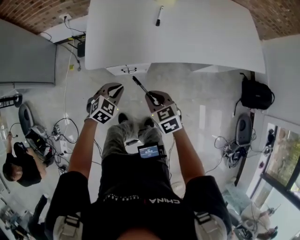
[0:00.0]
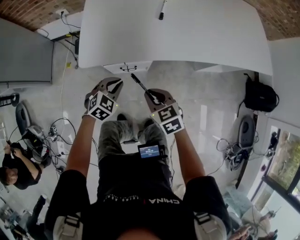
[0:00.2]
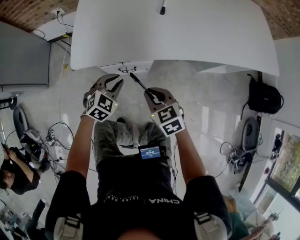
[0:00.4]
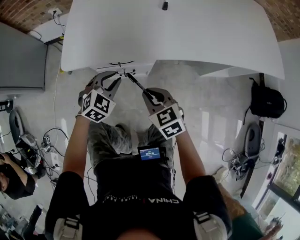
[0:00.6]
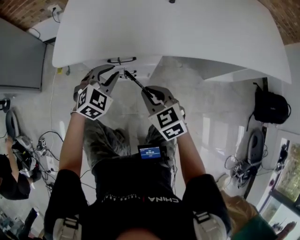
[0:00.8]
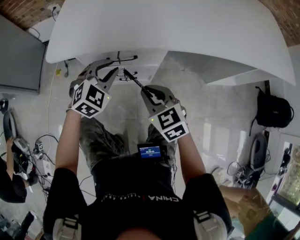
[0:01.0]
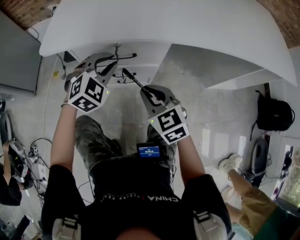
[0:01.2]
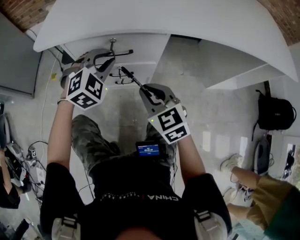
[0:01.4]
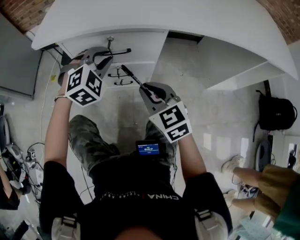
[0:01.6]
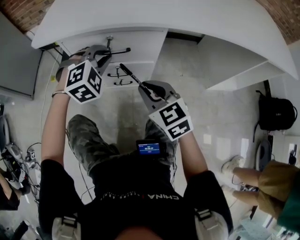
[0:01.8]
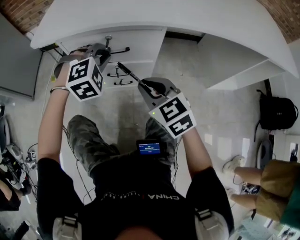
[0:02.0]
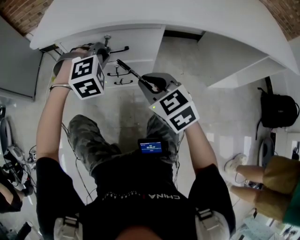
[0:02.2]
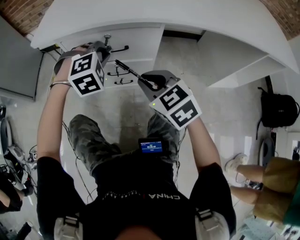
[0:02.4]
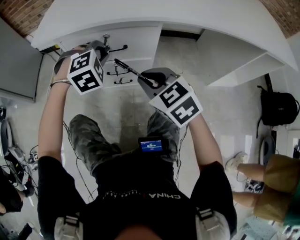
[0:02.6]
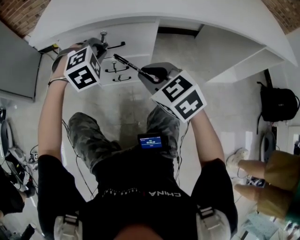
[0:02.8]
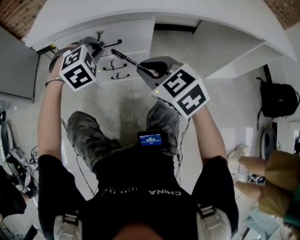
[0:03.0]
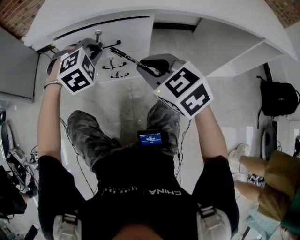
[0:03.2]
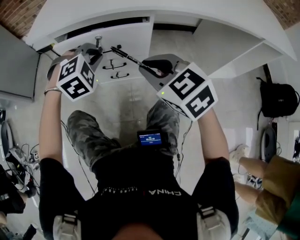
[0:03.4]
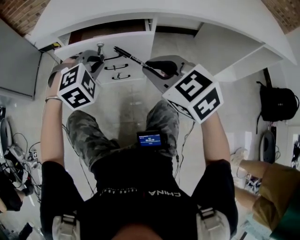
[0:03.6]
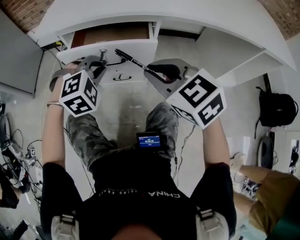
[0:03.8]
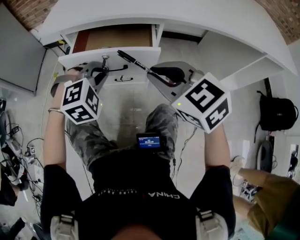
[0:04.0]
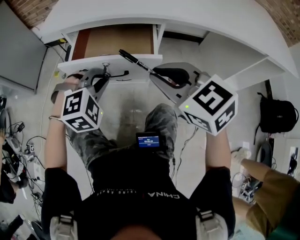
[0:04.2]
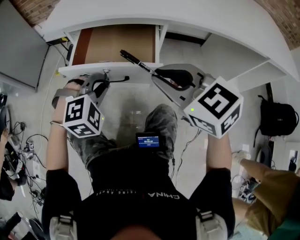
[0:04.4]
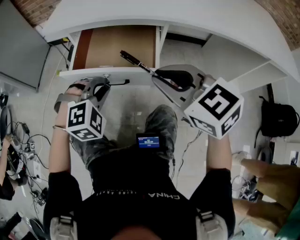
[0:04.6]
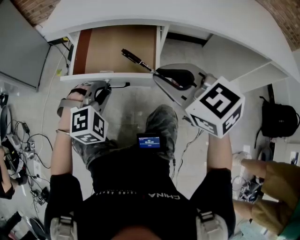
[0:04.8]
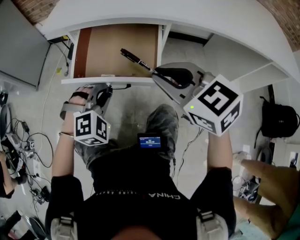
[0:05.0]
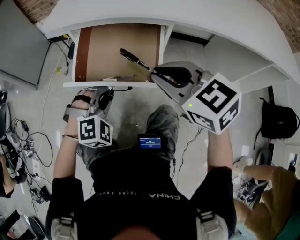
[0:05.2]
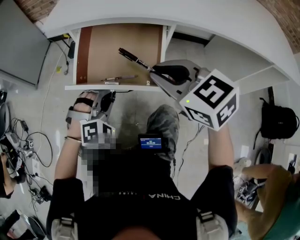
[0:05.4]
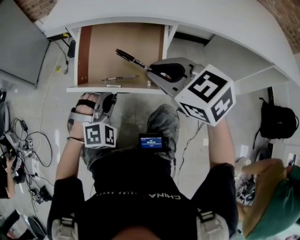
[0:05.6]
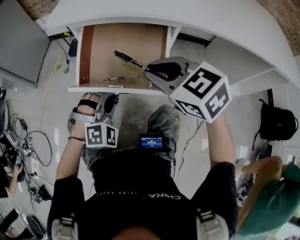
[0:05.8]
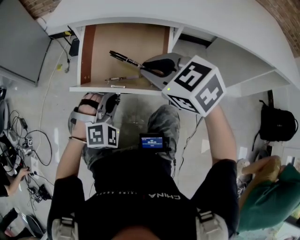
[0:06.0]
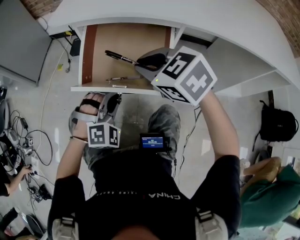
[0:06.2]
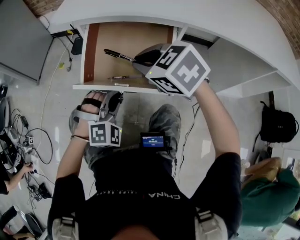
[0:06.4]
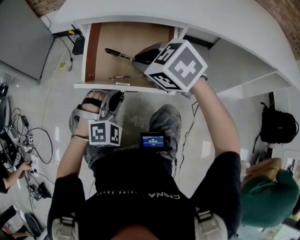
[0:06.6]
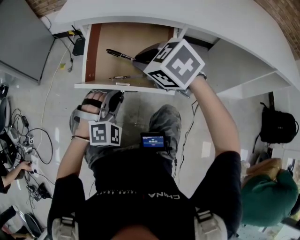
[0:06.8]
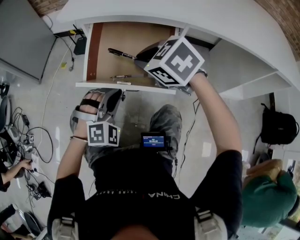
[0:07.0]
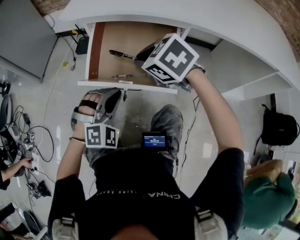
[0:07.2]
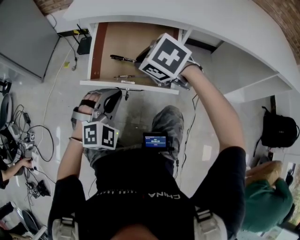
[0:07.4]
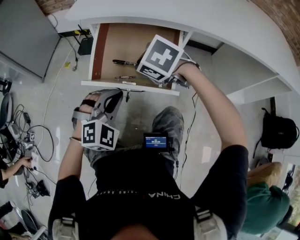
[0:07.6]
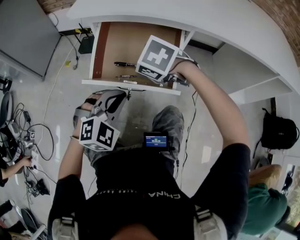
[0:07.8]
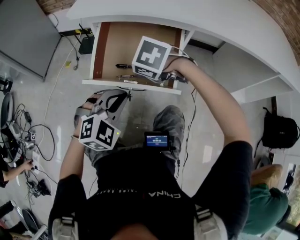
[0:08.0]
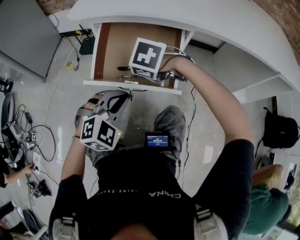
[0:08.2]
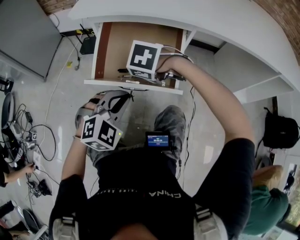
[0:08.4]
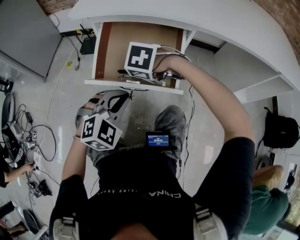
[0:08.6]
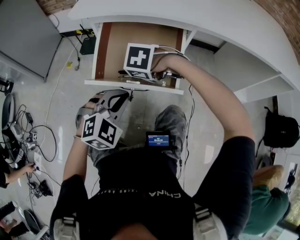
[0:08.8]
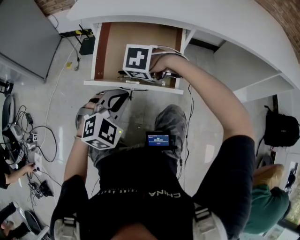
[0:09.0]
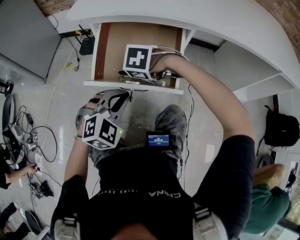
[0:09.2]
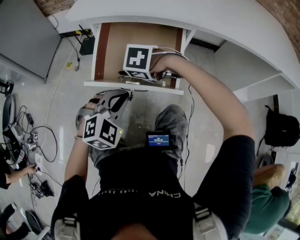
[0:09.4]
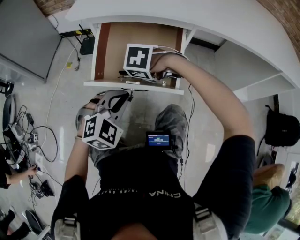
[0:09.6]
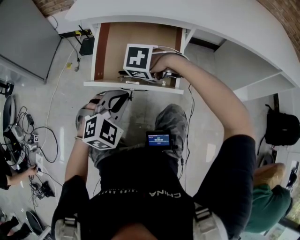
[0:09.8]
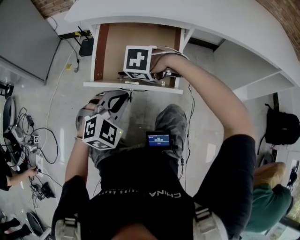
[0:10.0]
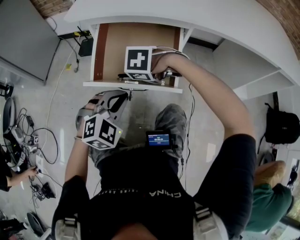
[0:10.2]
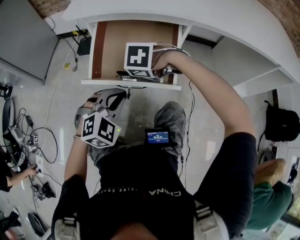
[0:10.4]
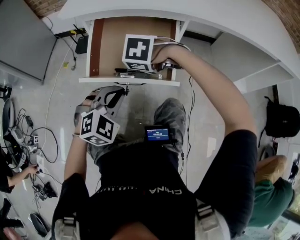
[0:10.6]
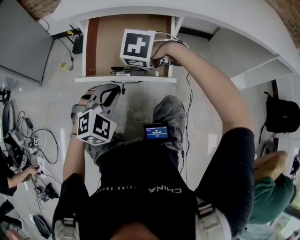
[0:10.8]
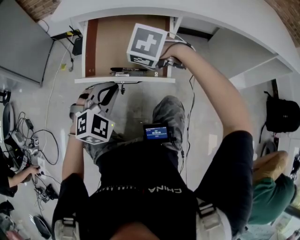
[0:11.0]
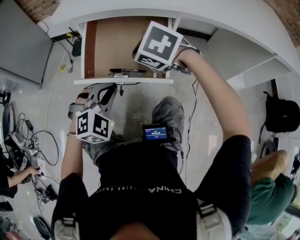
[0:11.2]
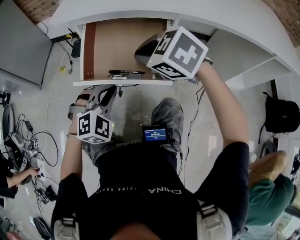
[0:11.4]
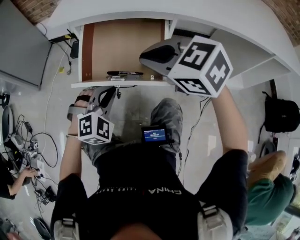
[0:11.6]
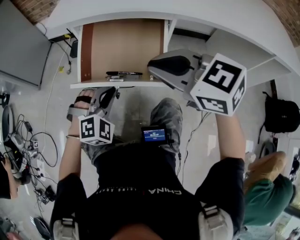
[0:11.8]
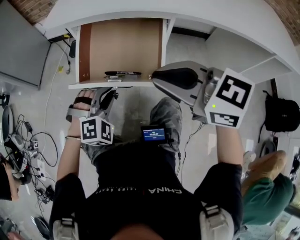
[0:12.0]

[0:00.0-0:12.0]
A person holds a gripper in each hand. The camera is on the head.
0:00.0 to 0:01.6: The right gripper shifts approximately 25 cm downward, and changes its angle by about 20 degrees; the left gripper shifts about 25 cm downward and forward, and changes its angle by roughly 30 degrees.
0:01.6 to 0:03.0: The right gripper is displaced upward by roughly 5 cm.
0:03.0 to 0:04.4: The left gripper moves backward, about 15 cm. Meanwhile the right gripper moves upward and backward, approximately 10 cm.
0:04.4 to 0:06.0: The left gripper travels downward by roughly 5 cm, while the right gripper heads forward, covering roughly 5 cm.
0:06.0 to 0:07.6: The right gripper moves downward and forward, roughly 10 cm, and rotates approximately 20 degrees.
0:07.6 to 0:09.0: The right gripper is displaced downward by some 10 cm, and swivels approximately 20 degrees.
0:09.0 to 0:10.4: Both grippers stay about where they are.
0:10.4 to 0:12.0: The right gripper travels upward by approximately 20 cm, and angles its fingers upward, by roughly 60 degrees. The left gripper changes its angle by approximately 20 degrees.

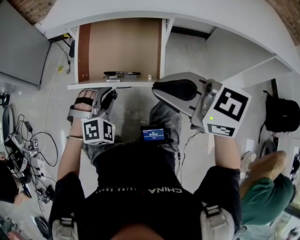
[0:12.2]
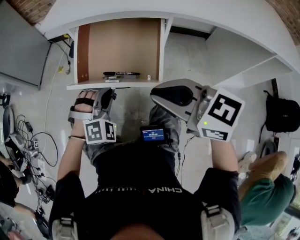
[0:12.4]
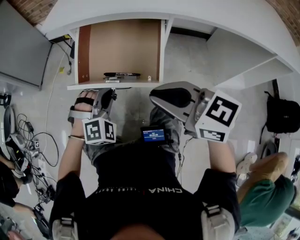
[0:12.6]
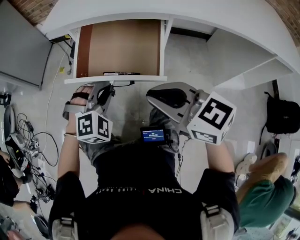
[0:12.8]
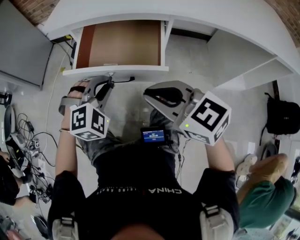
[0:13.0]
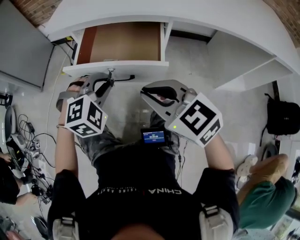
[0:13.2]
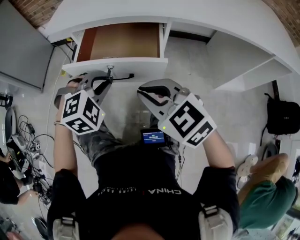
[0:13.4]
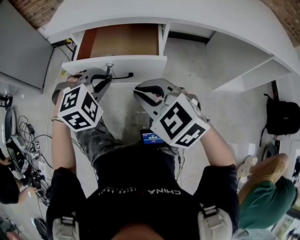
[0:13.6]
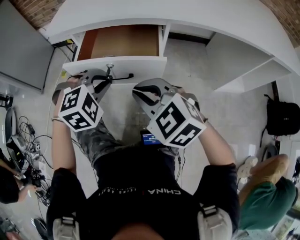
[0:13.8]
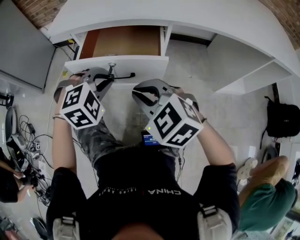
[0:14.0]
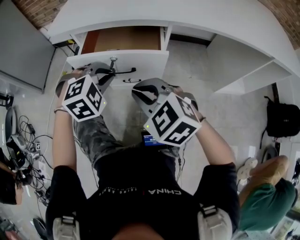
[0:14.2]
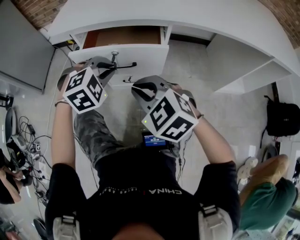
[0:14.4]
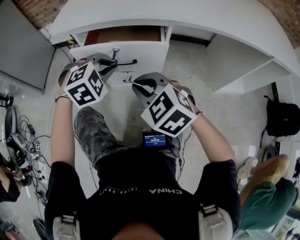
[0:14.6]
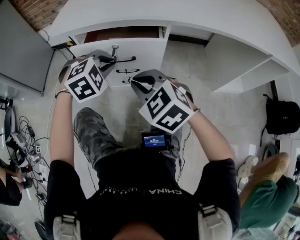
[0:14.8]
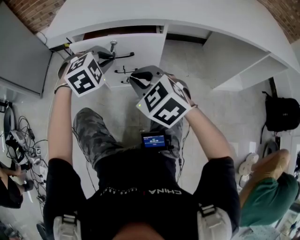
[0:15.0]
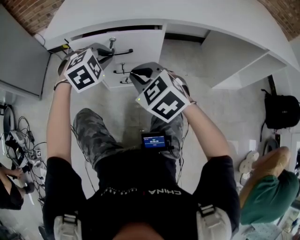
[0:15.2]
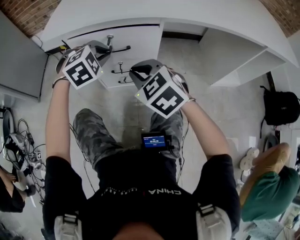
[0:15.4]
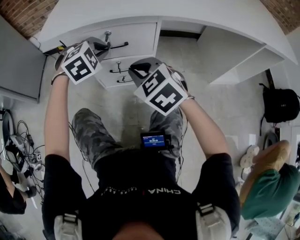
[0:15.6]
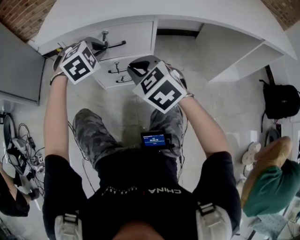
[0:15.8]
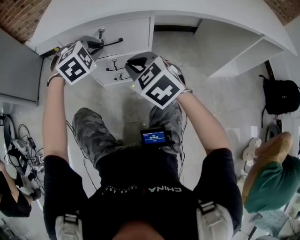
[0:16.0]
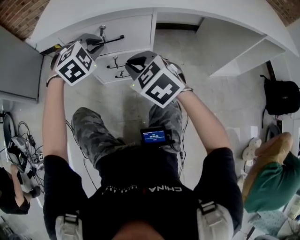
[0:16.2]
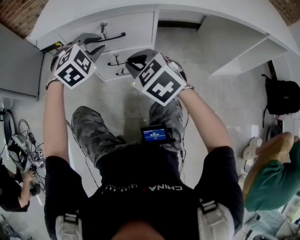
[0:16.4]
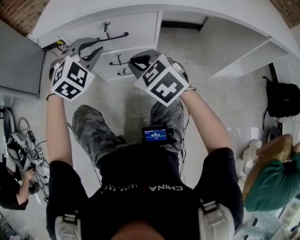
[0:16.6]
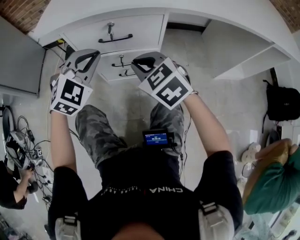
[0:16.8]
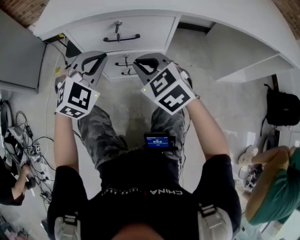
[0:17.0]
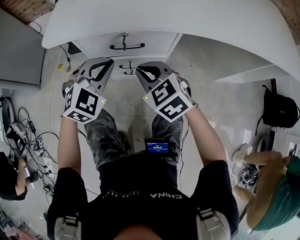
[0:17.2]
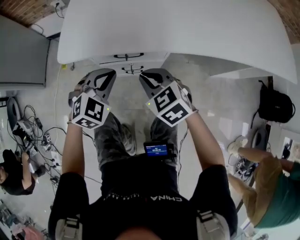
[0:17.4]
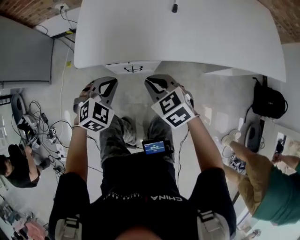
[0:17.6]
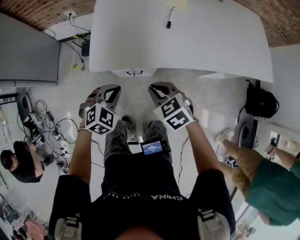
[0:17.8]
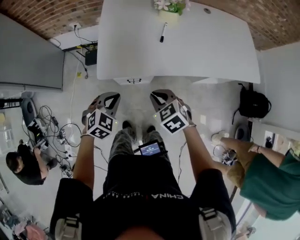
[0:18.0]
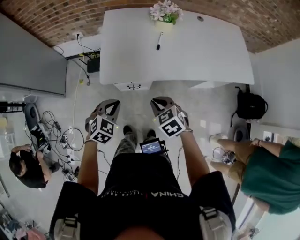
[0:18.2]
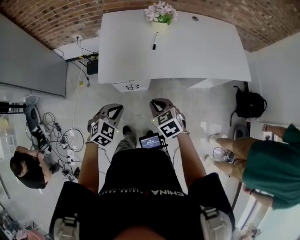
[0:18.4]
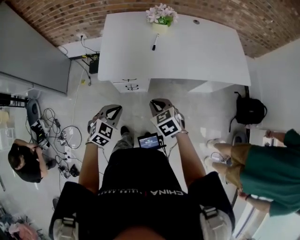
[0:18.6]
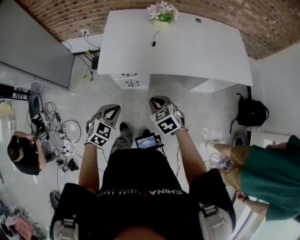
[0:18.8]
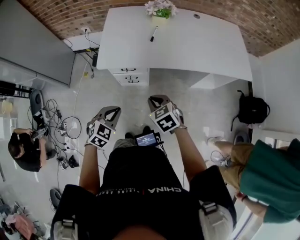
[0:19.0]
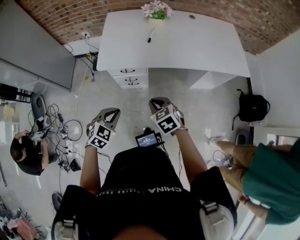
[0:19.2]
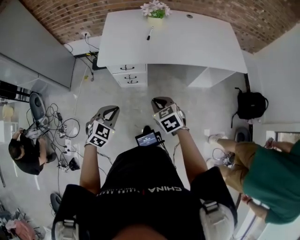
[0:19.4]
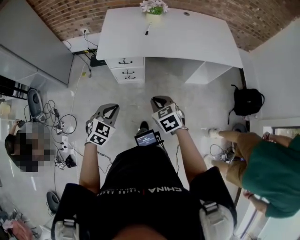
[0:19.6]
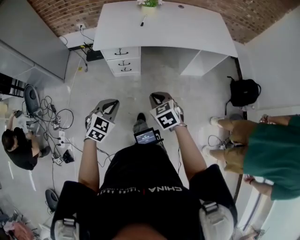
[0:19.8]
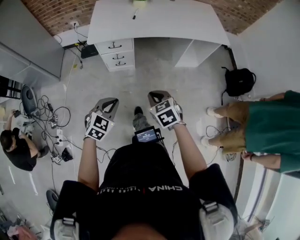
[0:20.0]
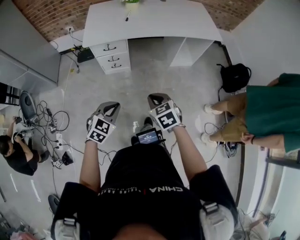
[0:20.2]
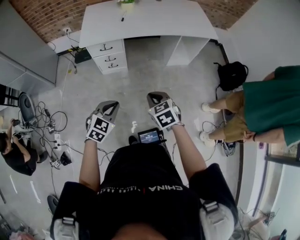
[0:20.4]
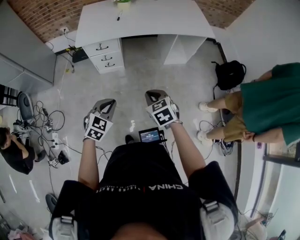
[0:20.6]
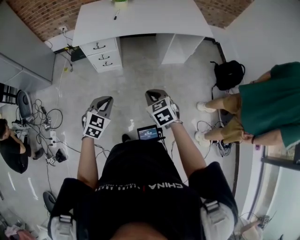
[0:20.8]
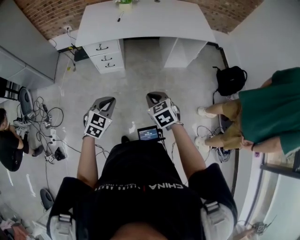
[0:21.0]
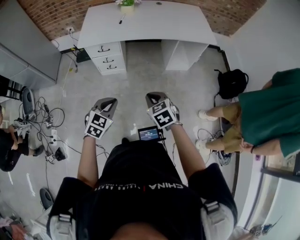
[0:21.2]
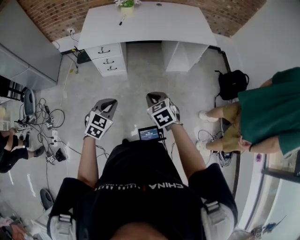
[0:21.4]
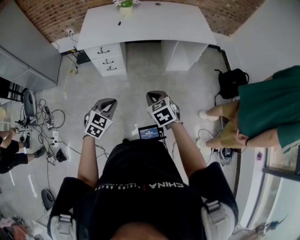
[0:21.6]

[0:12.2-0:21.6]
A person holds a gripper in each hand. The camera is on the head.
0:12.2 to 0:13.8: The left gripper moves upward, roughly 5 cm, while the right gripper goes roughly 5 cm downward, and swivels approximately 30 degrees.
0:13.8 to 0:15.4: The right gripper travels forward by about 5 cm. The left gripper moves forward, some 10 cm.
0:15.4 to 0:17.0: The left gripper changes its angle by about 20 degrees. Meanwhile the right gripper moves approximately 5 cm.
0:17.0 to 0:18.4: The right gripper heads upward, covering roughly 40 cm, and turns by approximately 20 degrees, while the left gripper is displaced upward and backward by about 40 cm, and swivels approximately 20 degrees.
0:18.4 to 0:20.0: The grippers both shift backward by about 35 cm.
0:20.0 to 0:21.6: Both grippers move to the right, roughly 15 cm.

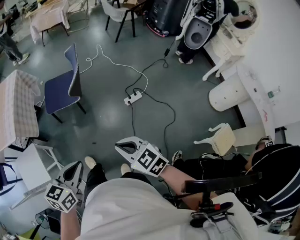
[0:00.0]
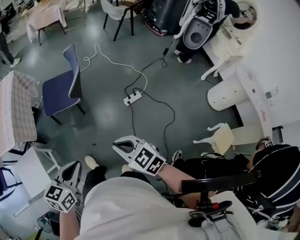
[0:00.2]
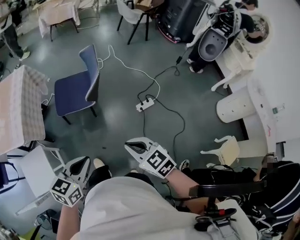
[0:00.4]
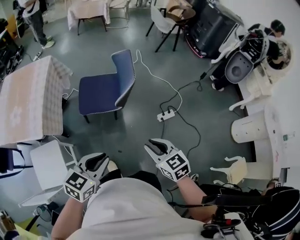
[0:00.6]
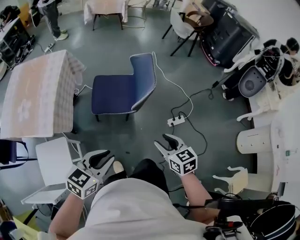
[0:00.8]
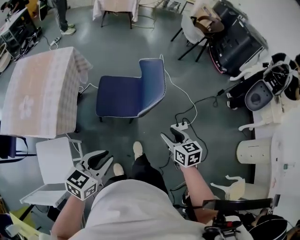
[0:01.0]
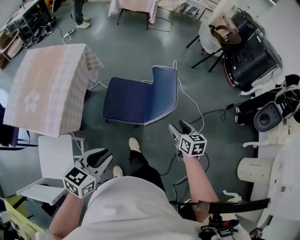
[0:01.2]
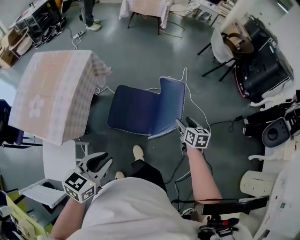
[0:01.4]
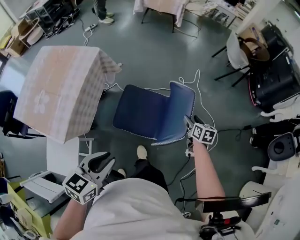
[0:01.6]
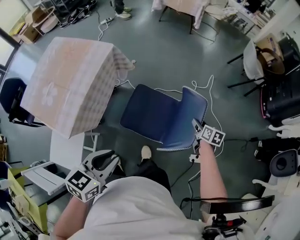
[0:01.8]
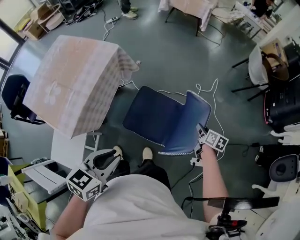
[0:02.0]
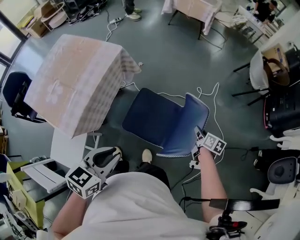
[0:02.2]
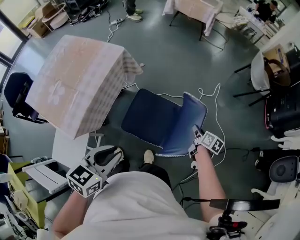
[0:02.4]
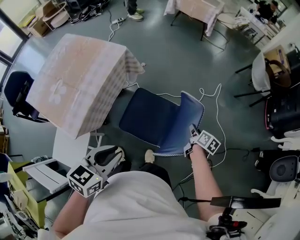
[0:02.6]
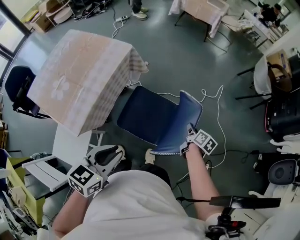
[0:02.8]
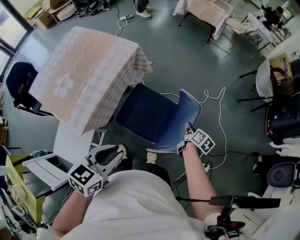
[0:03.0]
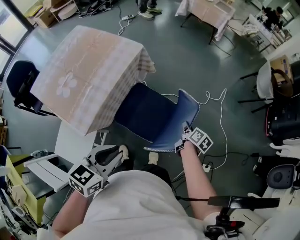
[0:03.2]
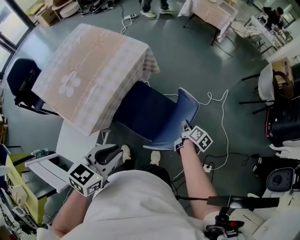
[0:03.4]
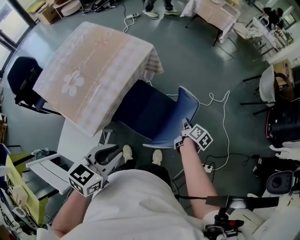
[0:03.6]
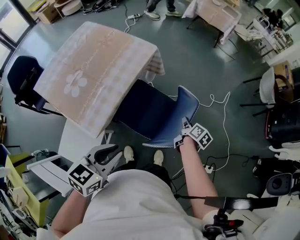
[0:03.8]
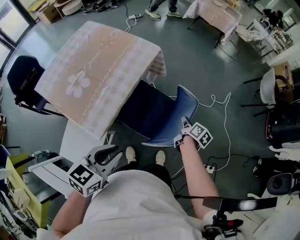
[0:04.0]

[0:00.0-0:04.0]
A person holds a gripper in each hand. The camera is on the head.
0:00.0 to 0:01.4: The pair of grippers is taken forward and to the left, roughly 50 cm. The right gripper turns by about 30 degrees, and opens.
0:01.4 to 0:02.6: The left gripper heads forward, covering approximately 10 cm, while the right gripper goes approximately 15 cm forward, to the left and downward, changes its angle by roughly 30 degrees, and closes up.
0:02.6 to 0:04.0: Both grippers move to the left, about 20 cm.
